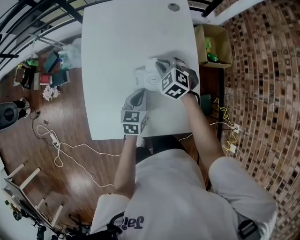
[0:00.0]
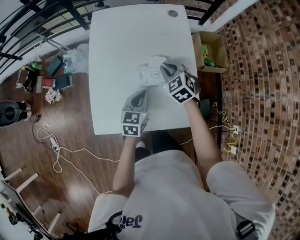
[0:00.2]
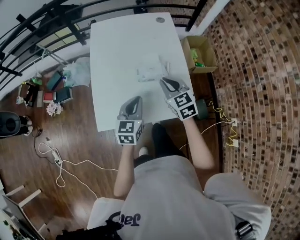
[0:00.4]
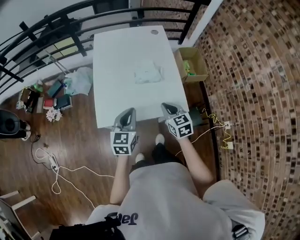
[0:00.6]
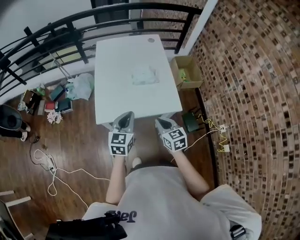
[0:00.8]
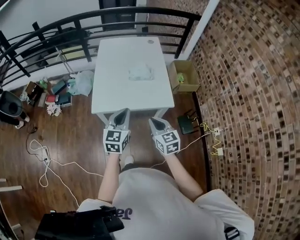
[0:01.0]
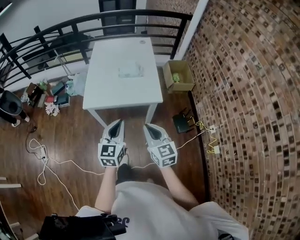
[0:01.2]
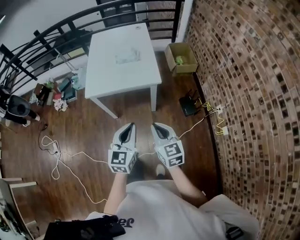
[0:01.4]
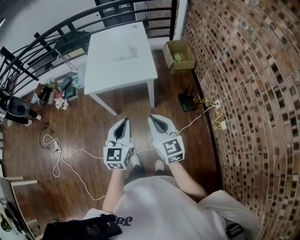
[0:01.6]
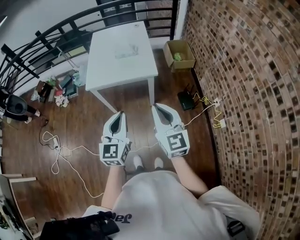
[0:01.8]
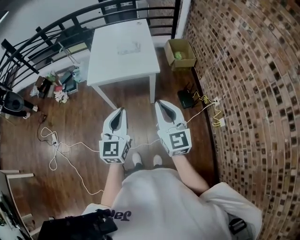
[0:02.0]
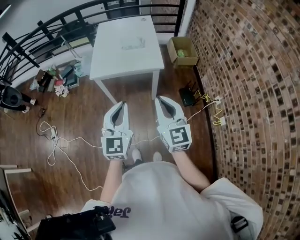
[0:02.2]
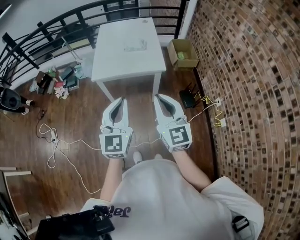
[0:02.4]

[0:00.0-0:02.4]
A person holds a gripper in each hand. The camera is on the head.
0.0 to 1.2 s: The pair of grippers is taken backward, about 50 cm. The right gripper tilts its fingers some 30 degrees upward. The left gripper shifts some 25 cm upward, and swivels some 30 degrees.
1.2 to 2.4 s: Both grippers move backward and upward, some 20 cm.

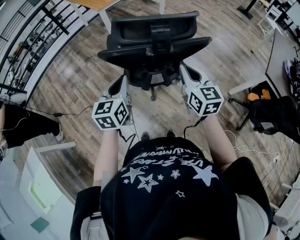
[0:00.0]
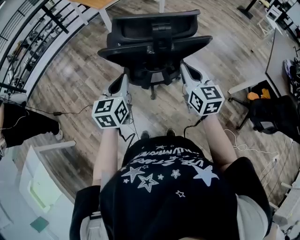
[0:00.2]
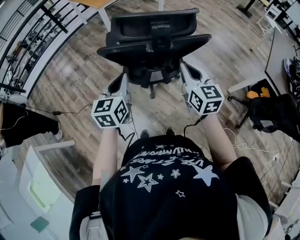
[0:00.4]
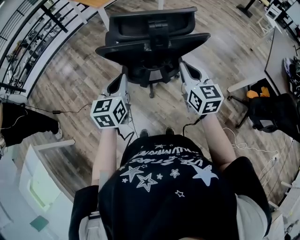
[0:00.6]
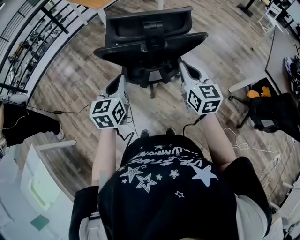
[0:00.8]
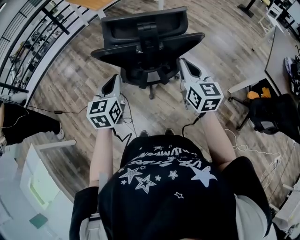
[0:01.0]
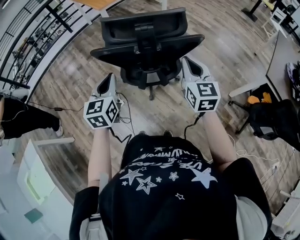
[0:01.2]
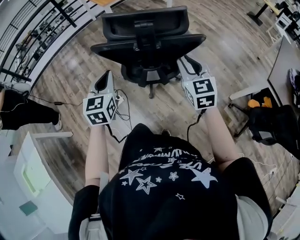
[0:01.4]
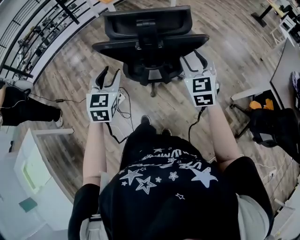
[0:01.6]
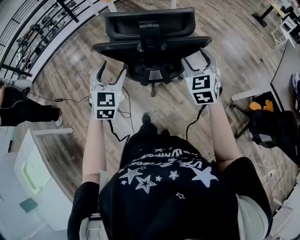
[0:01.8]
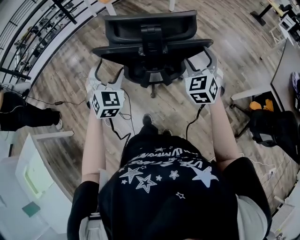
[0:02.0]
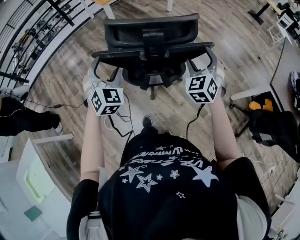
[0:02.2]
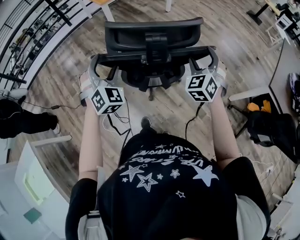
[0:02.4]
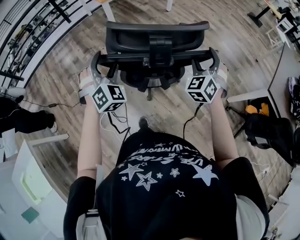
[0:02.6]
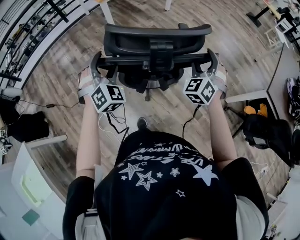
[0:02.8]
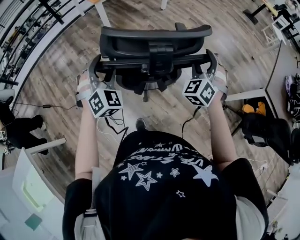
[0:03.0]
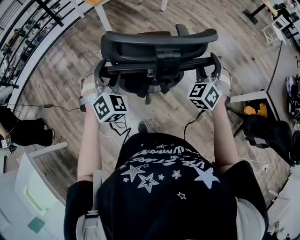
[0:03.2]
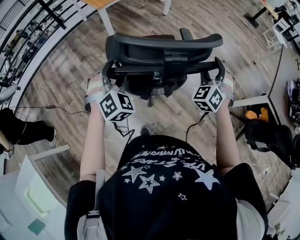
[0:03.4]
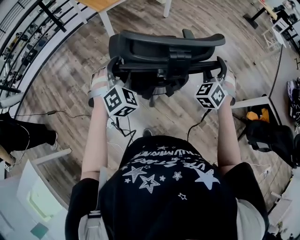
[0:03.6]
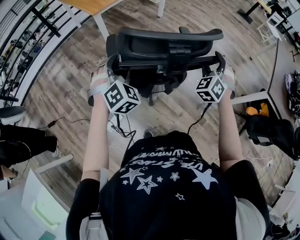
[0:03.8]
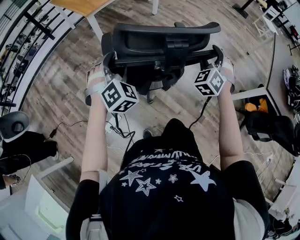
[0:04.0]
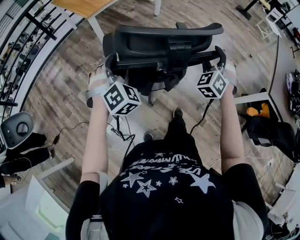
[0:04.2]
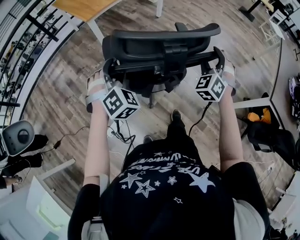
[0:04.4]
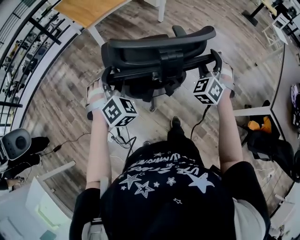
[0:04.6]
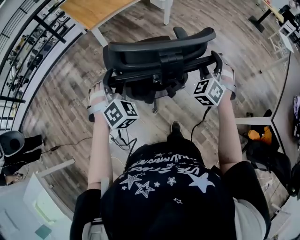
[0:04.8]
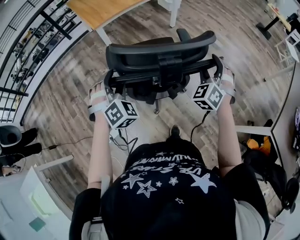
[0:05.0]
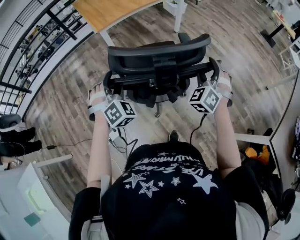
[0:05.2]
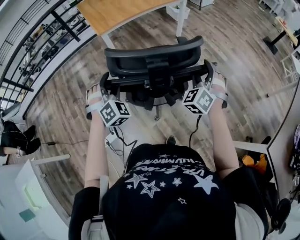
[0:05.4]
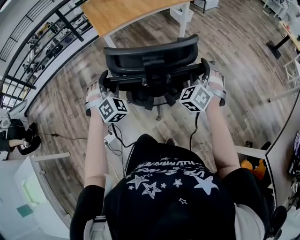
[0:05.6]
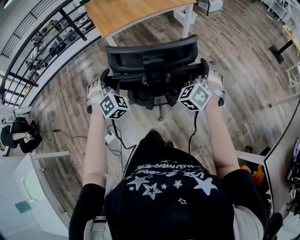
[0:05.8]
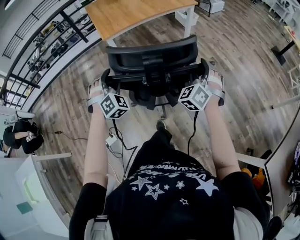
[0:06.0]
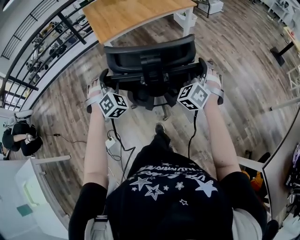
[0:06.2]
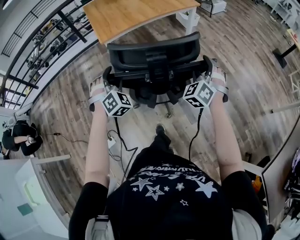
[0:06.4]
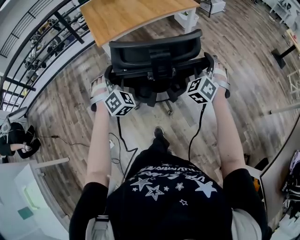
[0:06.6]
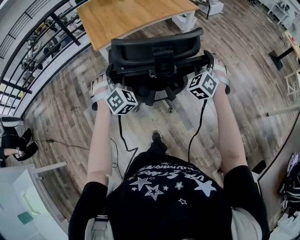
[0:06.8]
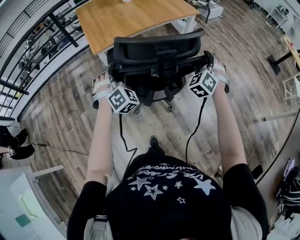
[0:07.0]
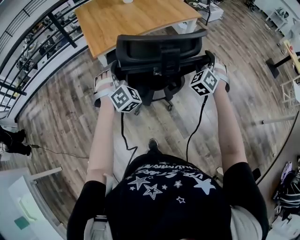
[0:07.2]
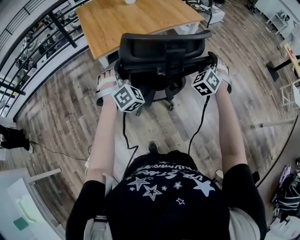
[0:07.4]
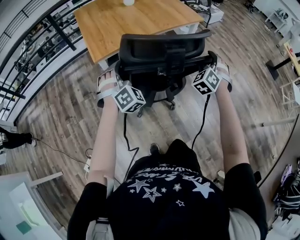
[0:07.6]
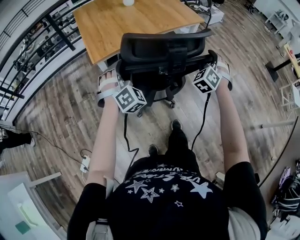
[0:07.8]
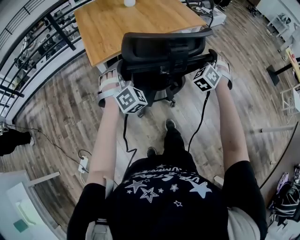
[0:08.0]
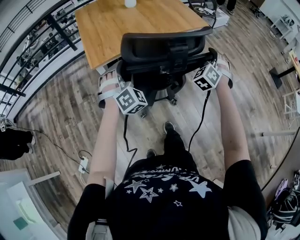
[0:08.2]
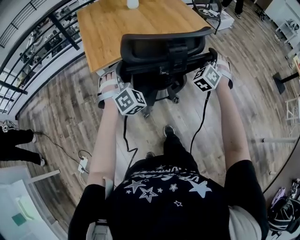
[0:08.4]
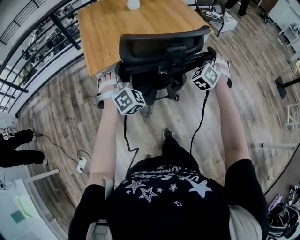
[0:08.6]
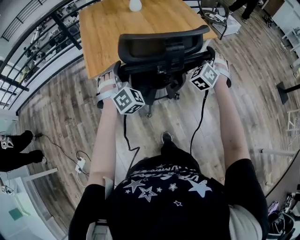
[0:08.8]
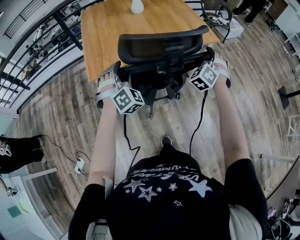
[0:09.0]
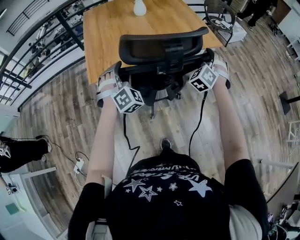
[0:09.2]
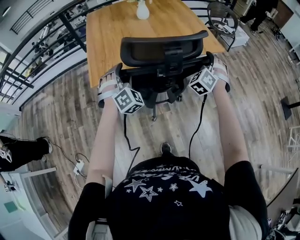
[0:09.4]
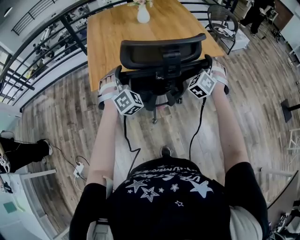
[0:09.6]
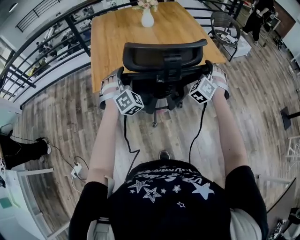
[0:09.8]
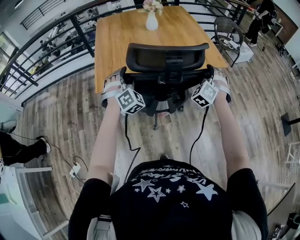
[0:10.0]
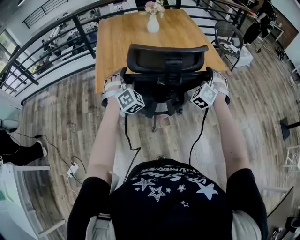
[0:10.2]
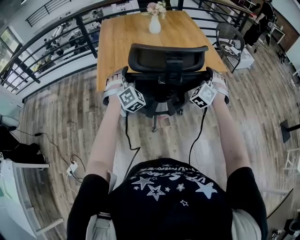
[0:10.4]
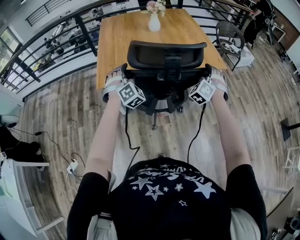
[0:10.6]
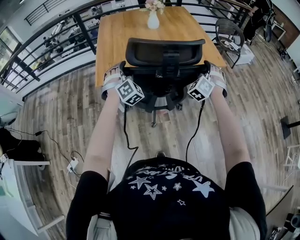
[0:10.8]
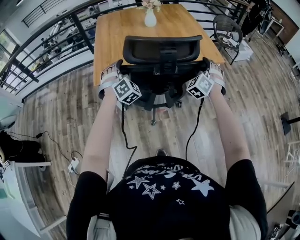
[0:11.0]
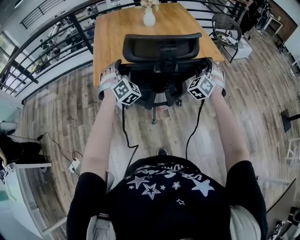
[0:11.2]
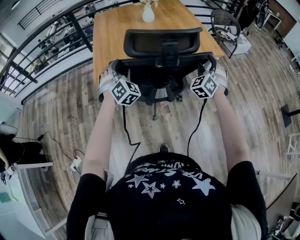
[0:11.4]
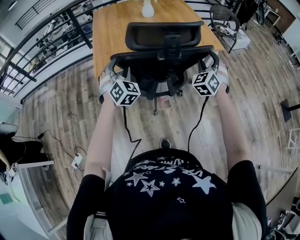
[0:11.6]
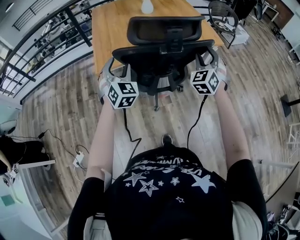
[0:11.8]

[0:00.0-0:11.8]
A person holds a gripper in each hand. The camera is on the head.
0.0 to 1.4 s: The right gripper shifts some 5 cm to the right.
1.4 to 3.0 s: The two grippers go some 15 cm forward. The right gripper swivels about 50 degrees, and opens its fingers. Meanwhile the left gripper rotates around the line of its fingers by approximately 50 degrees, clockwise from behind, and opens up.
3.0 to 4.4 s: The two grippers go approximately 15 cm forward.
4.4 to 6.0 s: The grippers both shift forward by approximately 15 cm.
6.0 to 7.4 s: The two grippers go roughly 30 cm forward.
7.4 to 8.8 s: Both grippers move forward, some 20 cm.
8.8 to 10.4 s: The two grippers go about 10 cm forward.
10.4 to 11.8 s: The right gripper goes roughly 10 cm backward and upward, and turns by about 30 degrees; the left gripper travels backward by roughly 10 cm, and changes its angle by roughly 30 degrees.

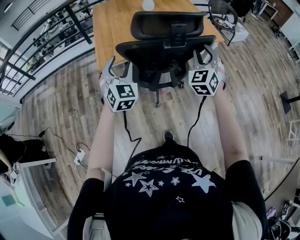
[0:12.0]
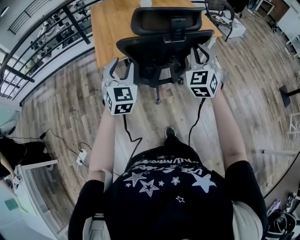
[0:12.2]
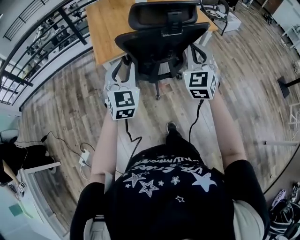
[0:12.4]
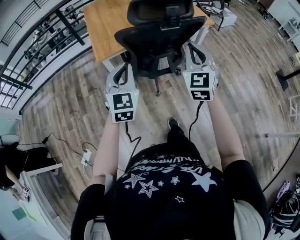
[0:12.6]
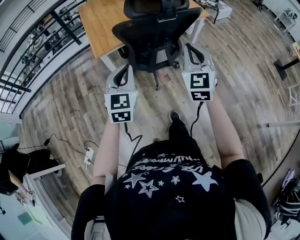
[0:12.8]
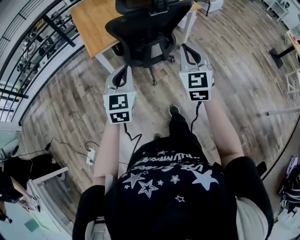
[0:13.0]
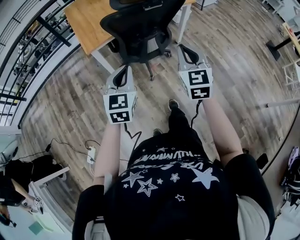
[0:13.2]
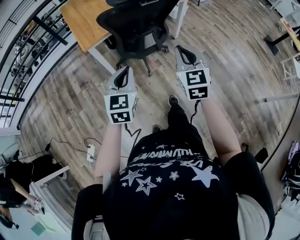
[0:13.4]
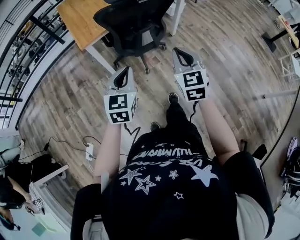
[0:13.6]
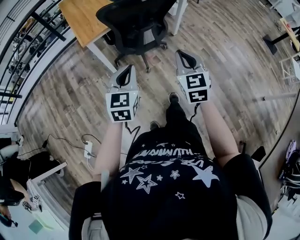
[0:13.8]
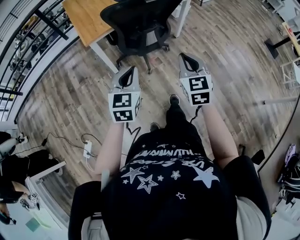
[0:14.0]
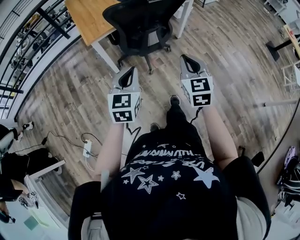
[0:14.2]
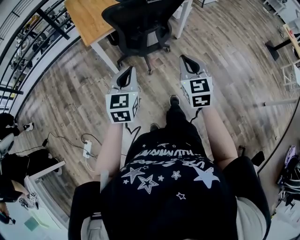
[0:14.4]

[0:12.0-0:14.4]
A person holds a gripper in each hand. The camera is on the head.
12.0 to 13.2 s: Both grippers move backward, about 25 cm. The left gripper rotates some 30 degrees, and closes up. The right gripper rotates about 30 degrees, and closes.
13.2 to 14.4 s: The right gripper travels backward and downward by roughly 5 cm.

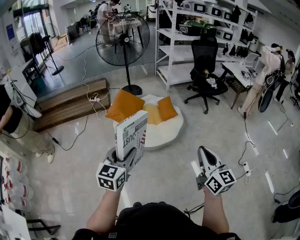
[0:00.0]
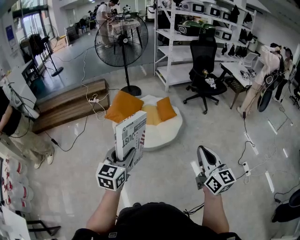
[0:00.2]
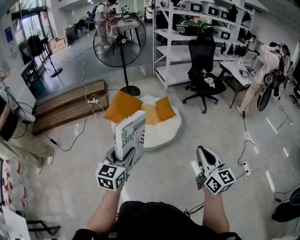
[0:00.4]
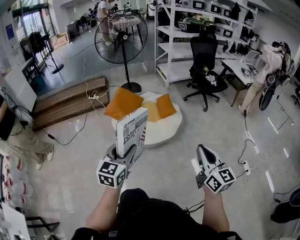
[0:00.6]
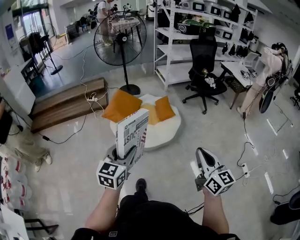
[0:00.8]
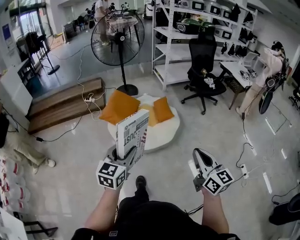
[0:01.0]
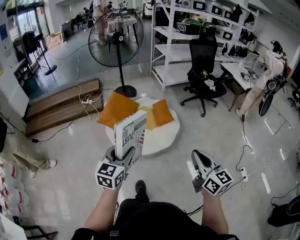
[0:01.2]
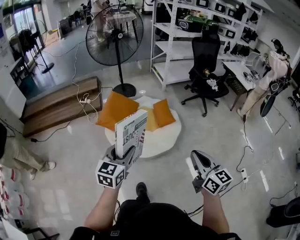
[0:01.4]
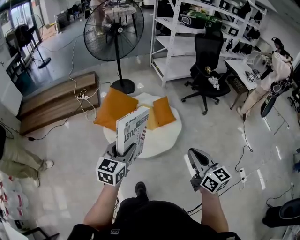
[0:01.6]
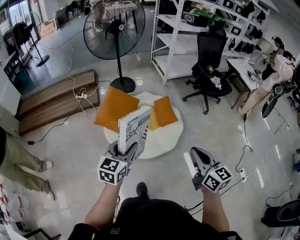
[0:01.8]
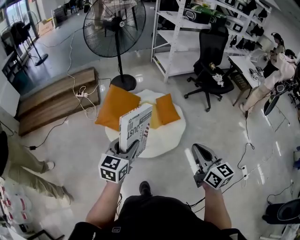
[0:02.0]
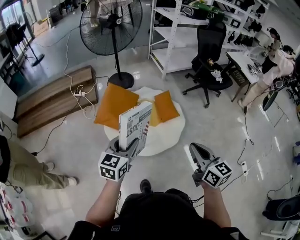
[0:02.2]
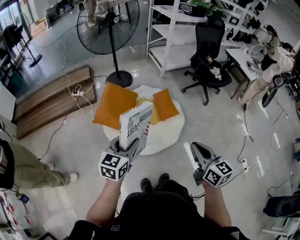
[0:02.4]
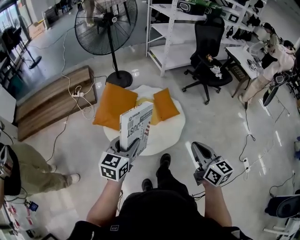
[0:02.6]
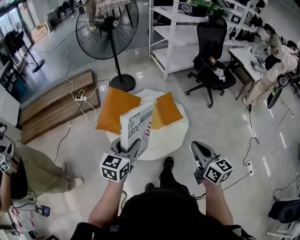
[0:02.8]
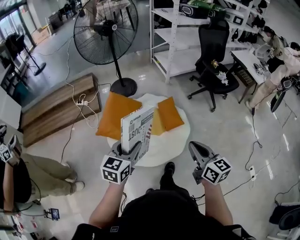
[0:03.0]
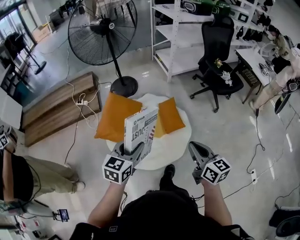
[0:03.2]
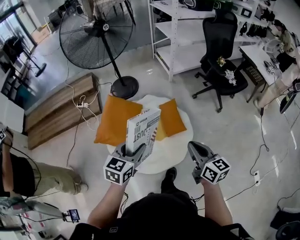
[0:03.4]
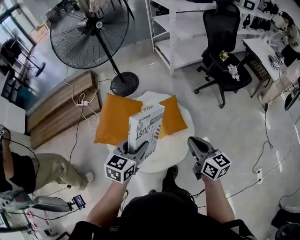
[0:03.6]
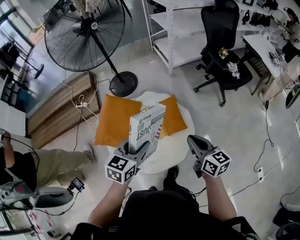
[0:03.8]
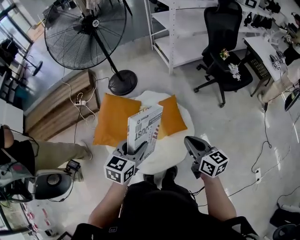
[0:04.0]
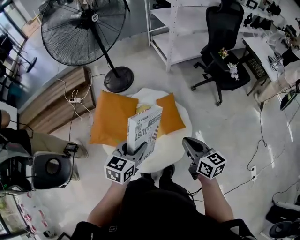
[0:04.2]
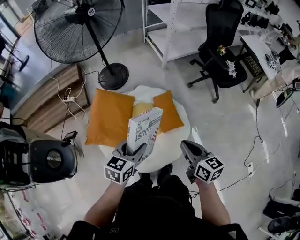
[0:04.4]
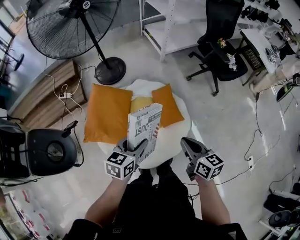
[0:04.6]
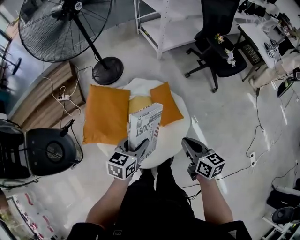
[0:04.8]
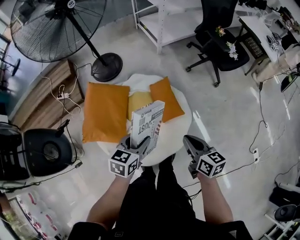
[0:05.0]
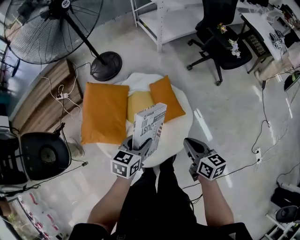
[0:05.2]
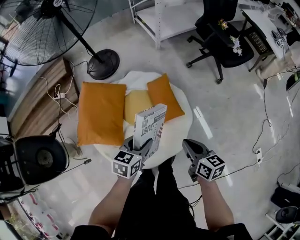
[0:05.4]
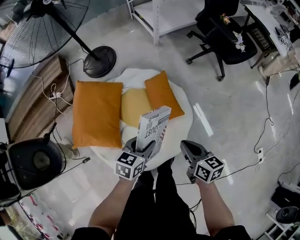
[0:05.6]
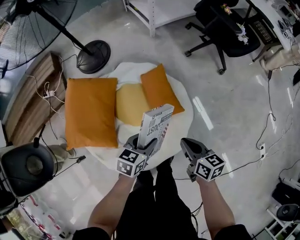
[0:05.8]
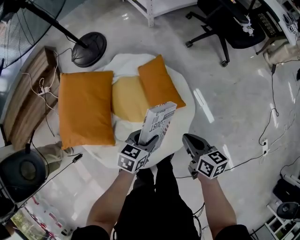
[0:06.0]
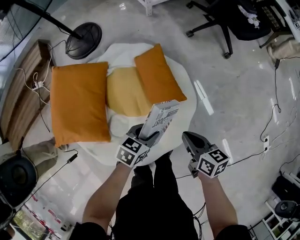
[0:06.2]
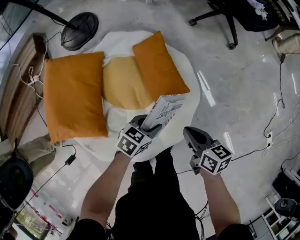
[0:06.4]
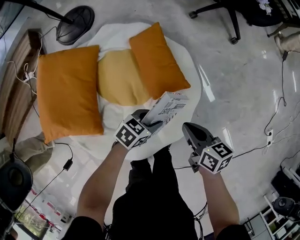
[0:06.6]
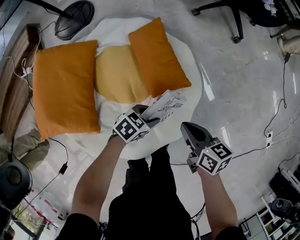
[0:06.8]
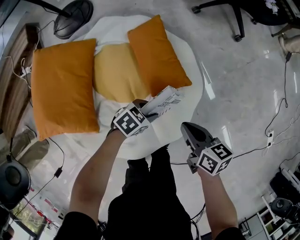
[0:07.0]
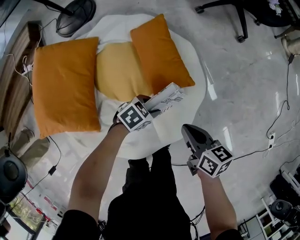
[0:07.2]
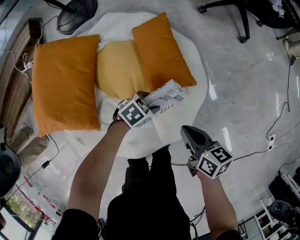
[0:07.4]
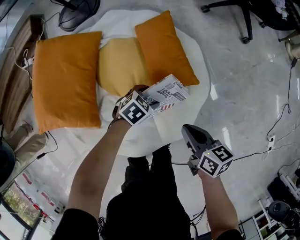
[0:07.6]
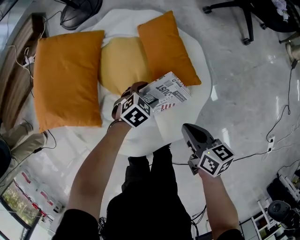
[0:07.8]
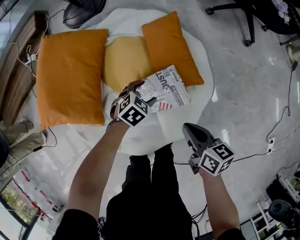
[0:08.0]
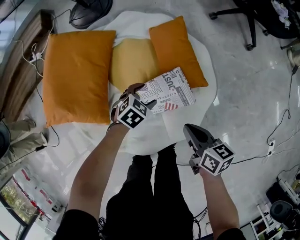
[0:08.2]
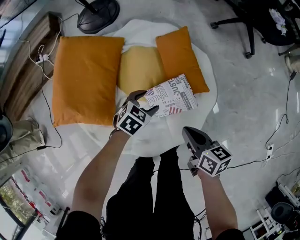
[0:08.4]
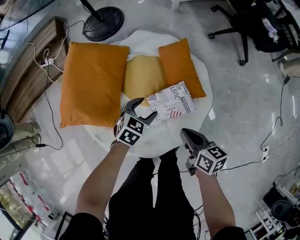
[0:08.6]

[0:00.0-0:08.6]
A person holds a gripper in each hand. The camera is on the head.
0.0 to 1.4 s: Both grippers travel together forward, some 20 cm.
1.4 to 2.8 s: The right gripper travels forward and to the left by roughly 20 cm. The left gripper moves forward, about 15 cm.
2.8 to 4.4 s: The grippers both shift forward by some 30 cm.
4.4 to 5.8 s: The left gripper moves downward and to the right, some 30 cm; the right gripper travels downward by approximately 25 cm.
5.8 to 7.2 s: The right gripper is displaced downward by about 20 cm. Meanwhile the left gripper travels downward by some 30 cm, and turns by roughly 40 degrees.
7.2 to 8.6 s: The left gripper ends up about 20 cm from where it was, rotates about 30 degrees, and opens. Meanwhile the right gripper shifts by some 15 cm.
